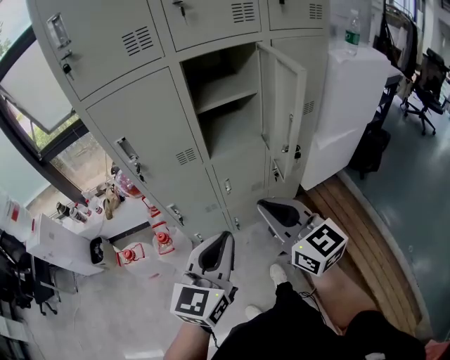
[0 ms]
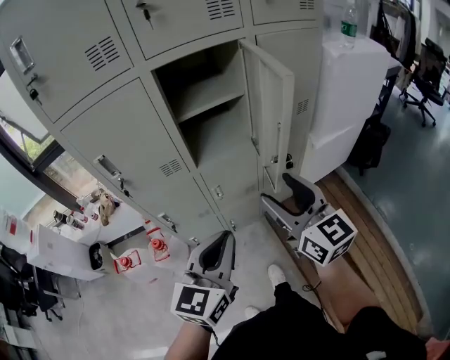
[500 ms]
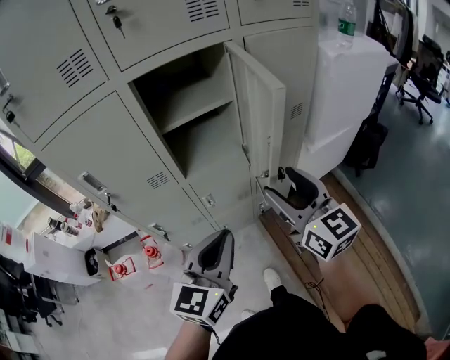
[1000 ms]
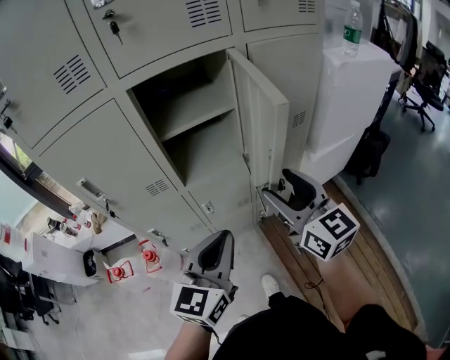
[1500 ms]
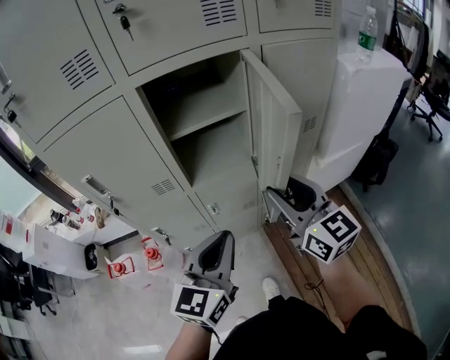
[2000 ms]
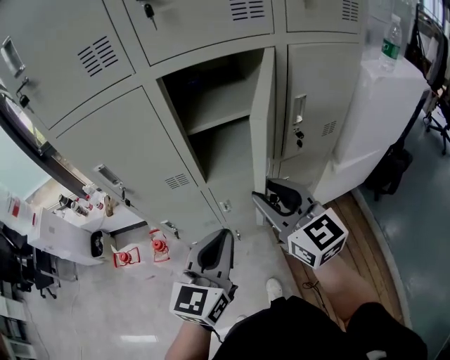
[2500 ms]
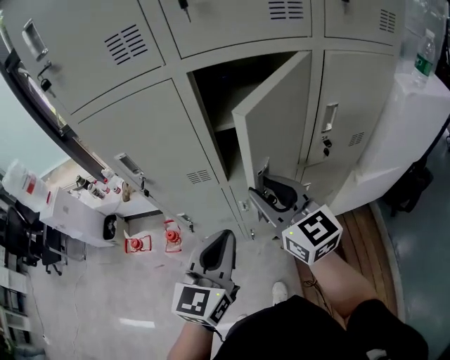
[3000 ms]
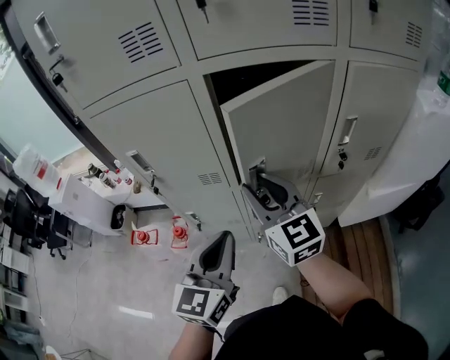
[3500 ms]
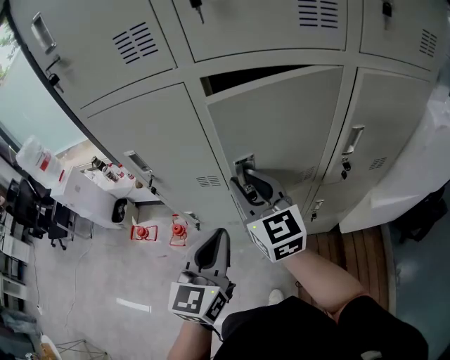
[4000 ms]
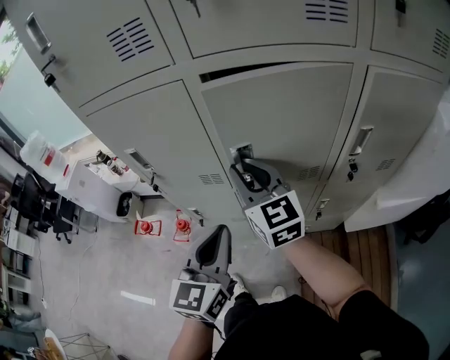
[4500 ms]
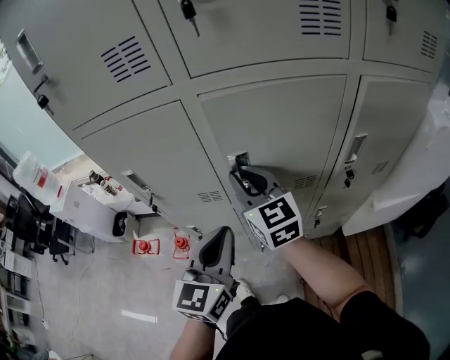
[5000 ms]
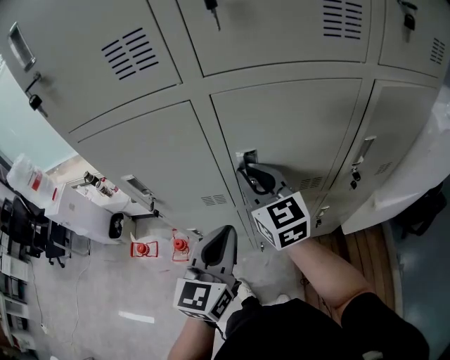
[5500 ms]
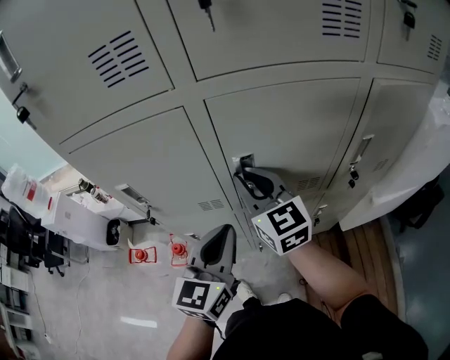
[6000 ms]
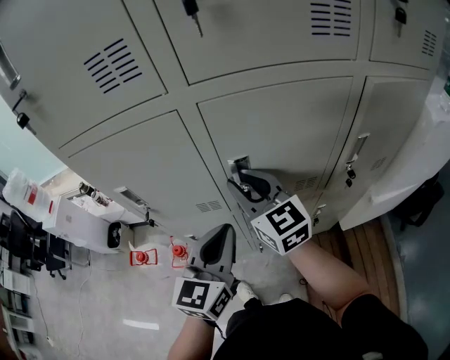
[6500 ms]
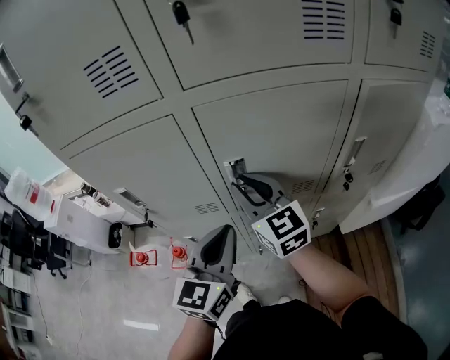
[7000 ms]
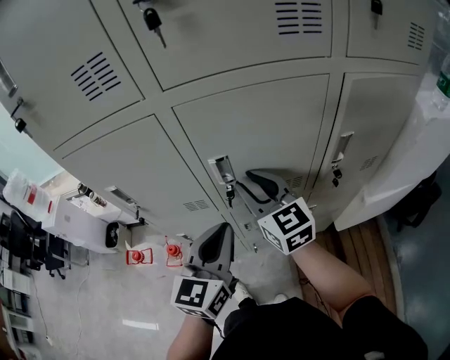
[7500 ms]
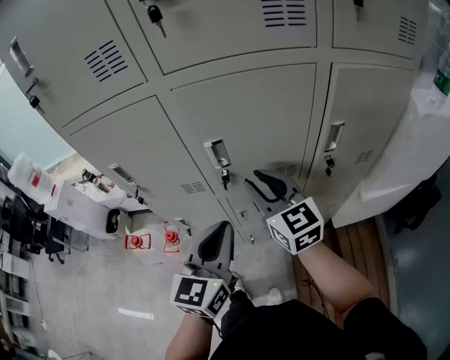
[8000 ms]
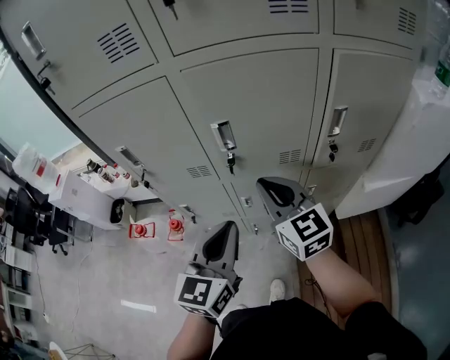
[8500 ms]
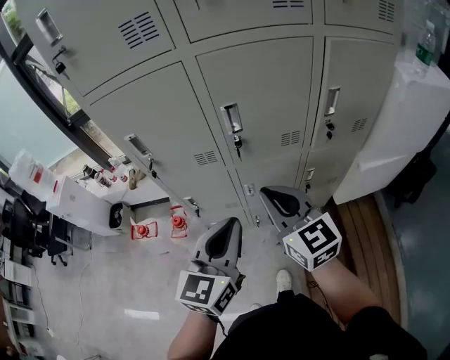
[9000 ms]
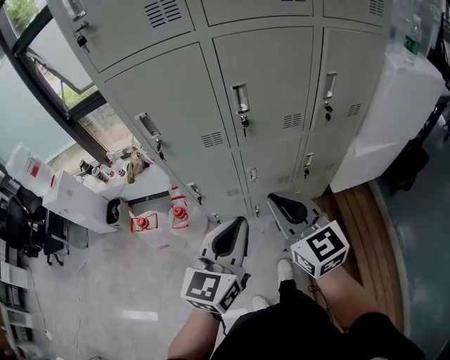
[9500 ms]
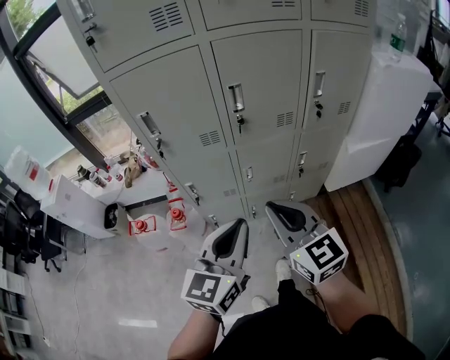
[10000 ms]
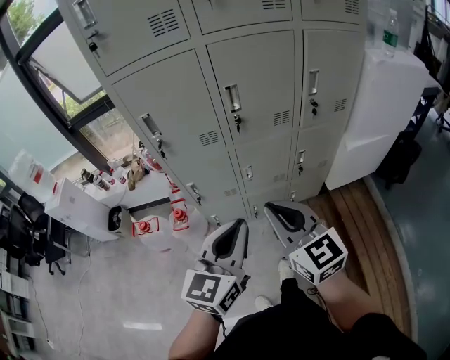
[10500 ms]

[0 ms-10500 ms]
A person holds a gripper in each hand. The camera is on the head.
0 ms to 2000 ms: Both grippers travel together forward and to the right, about 20 cm. The right gripper opens.
2000 ms to 4000 ms: The right gripper moves to the left and forward, approximately 20 cm; the left gripper goes about 10 cm to the left and forward, and turns by some 30 degrees.
4000 ms to 6500 ms: Both grippers move forward, approximately 10 cm.
6500 ms to 8500 ms: The left gripper heads backward, covering about 10 cm. The right gripper moves backward and to the right, some 15 cm.
8500 ms to 10500 ms: Both grippers move backward, about 20 cm.

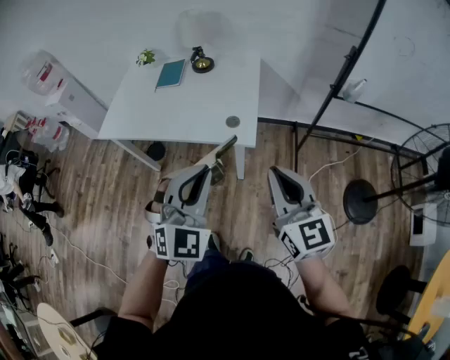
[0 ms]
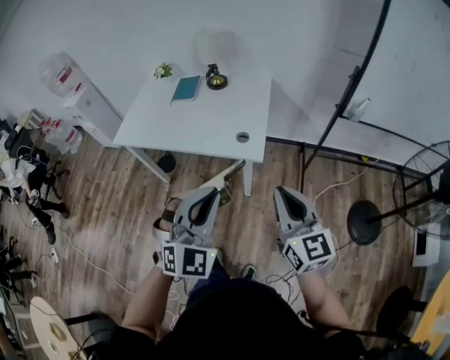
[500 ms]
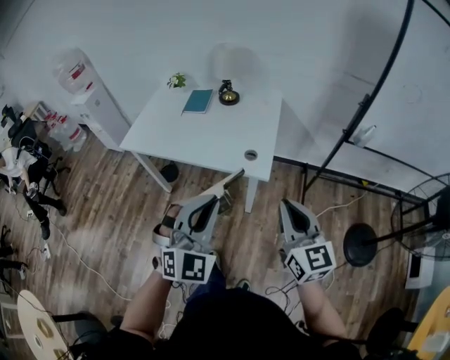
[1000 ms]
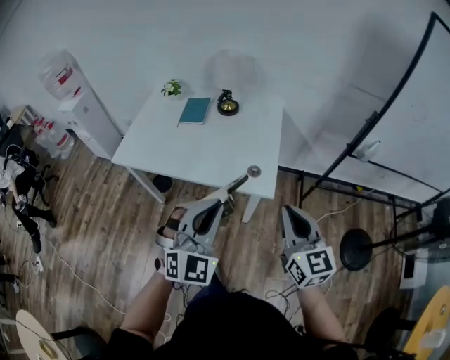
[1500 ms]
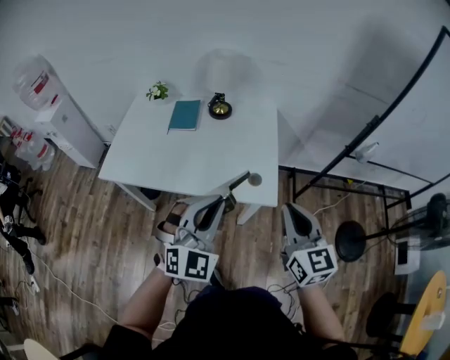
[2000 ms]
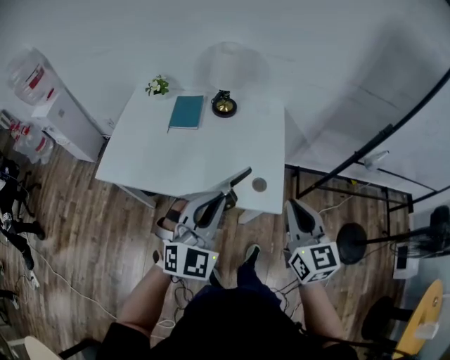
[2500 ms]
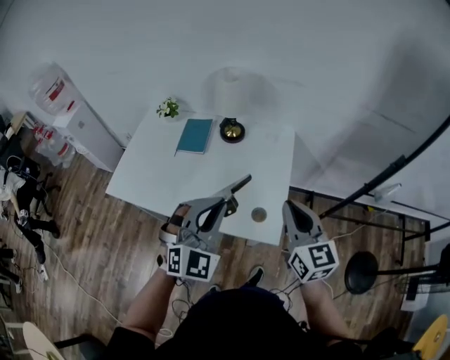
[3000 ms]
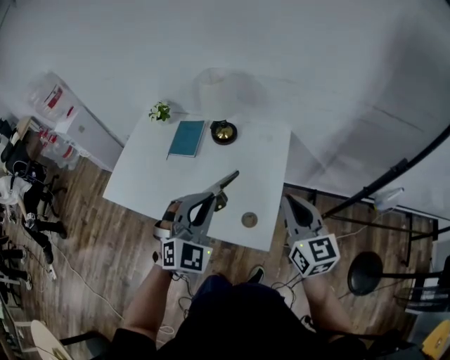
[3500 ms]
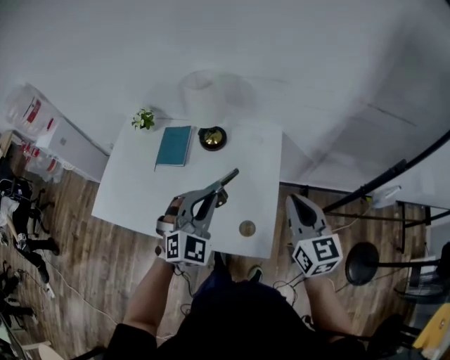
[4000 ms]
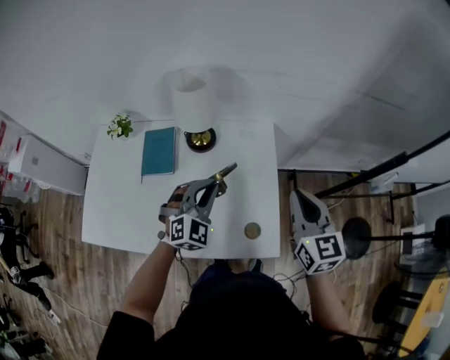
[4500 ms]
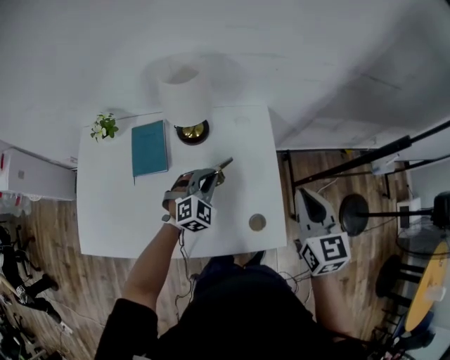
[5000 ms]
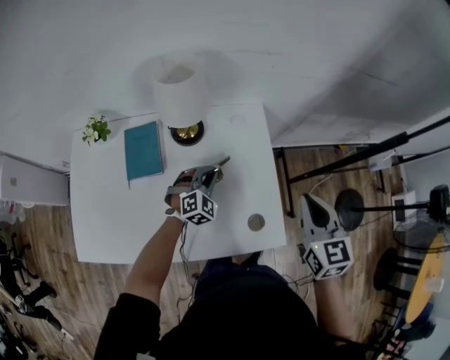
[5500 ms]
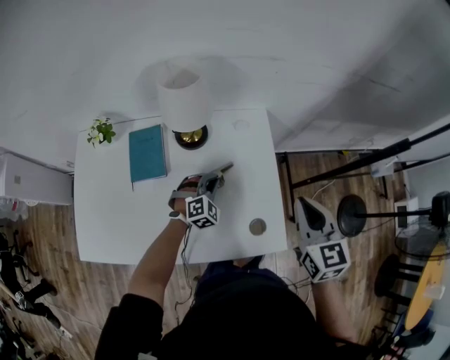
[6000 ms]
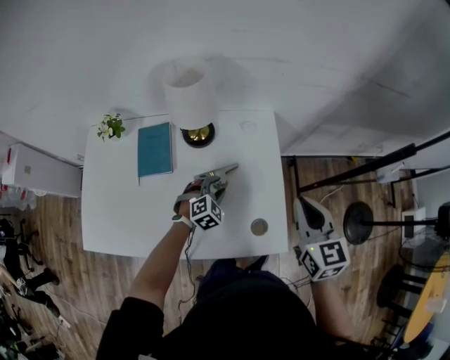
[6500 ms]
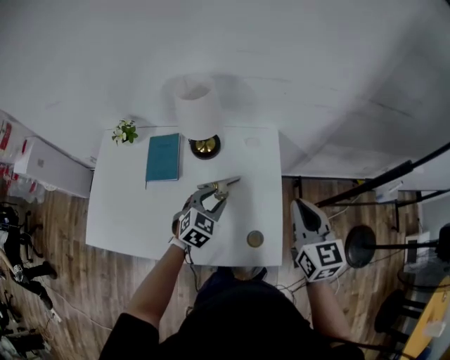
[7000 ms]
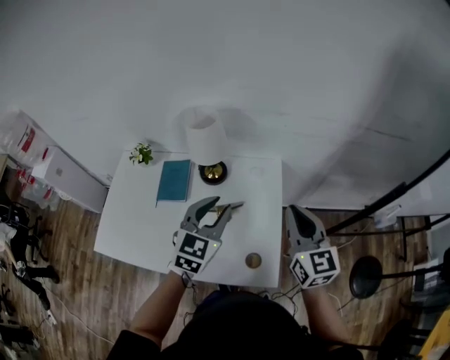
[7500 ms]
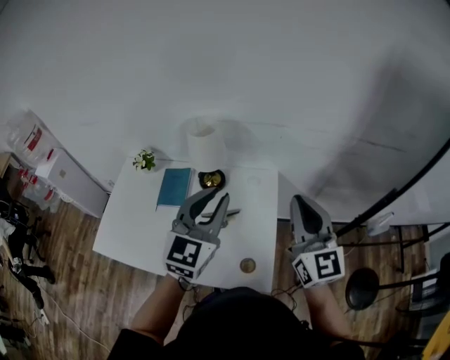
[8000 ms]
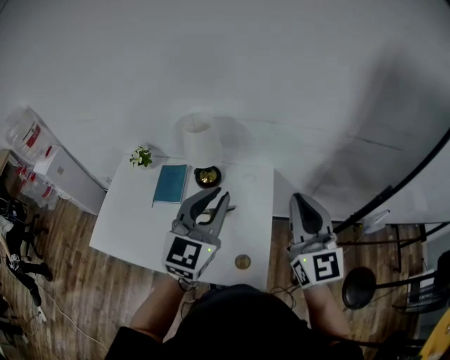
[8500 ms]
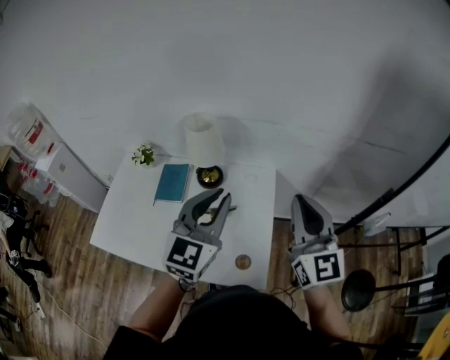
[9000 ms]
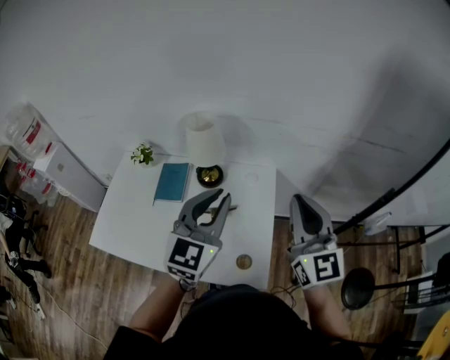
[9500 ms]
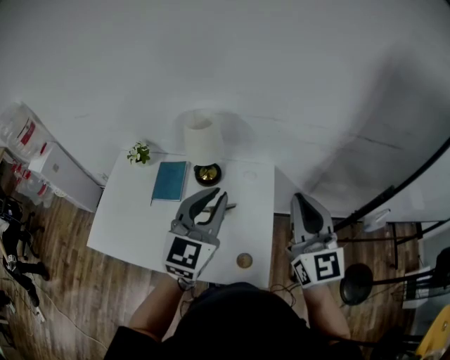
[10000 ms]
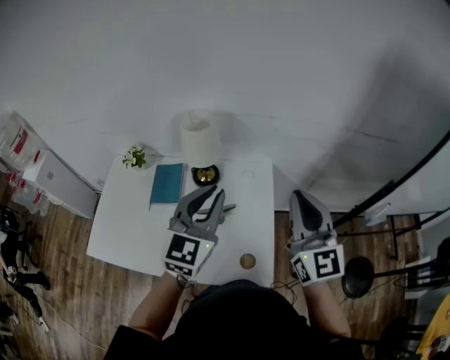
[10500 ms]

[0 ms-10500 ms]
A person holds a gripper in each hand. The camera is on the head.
0 ms to 2000 ms: The right gripper is displaced forward and to the left by some 20 cm. Meanwhile the left gripper heads to the left and forward, covering approximately 20 cm.
2000 ms to 4000 ms: The two grippers go approximately 30 cm forward.
4000 ms to 6500 ms: The right gripper travels downward and to the left by about 10 cm. Meanwhile the left gripper travels downward and forward by some 30 cm, changes its angle by roughly 30 degrees, and opens its fingers.
6500 ms to 8500 ms: The right gripper is displaced upward by roughly 20 cm, and tips its fingers upward by some 30 degrees. The left gripper heads upward, covering approximately 40 cm, points its fingers some 50 degrees further upward, and closes up.
8500 ms to 10500 ms: The left gripper moves some 5 cm.

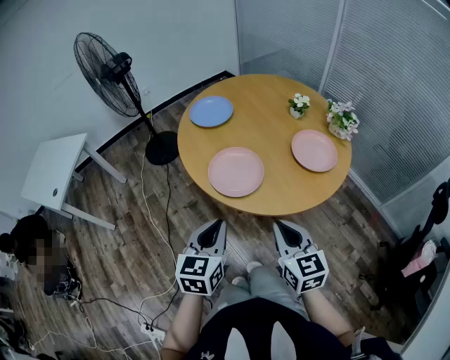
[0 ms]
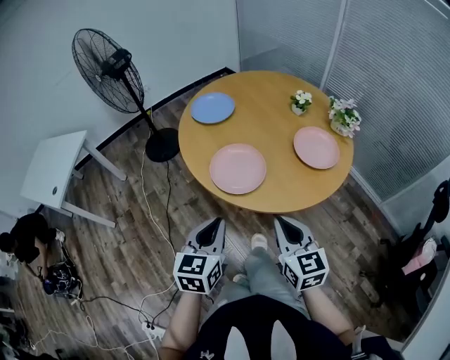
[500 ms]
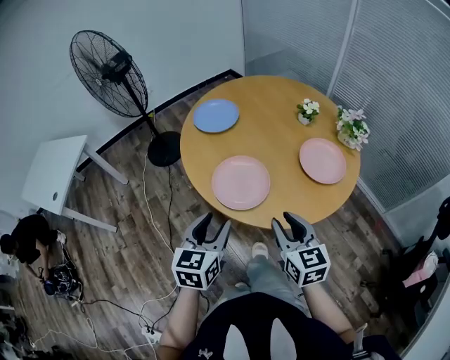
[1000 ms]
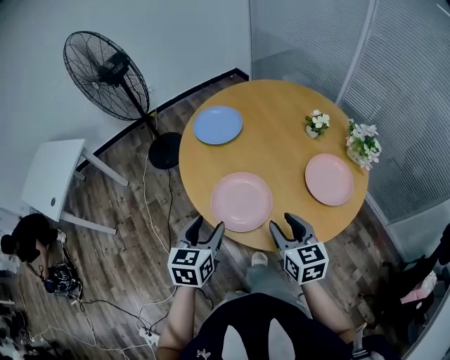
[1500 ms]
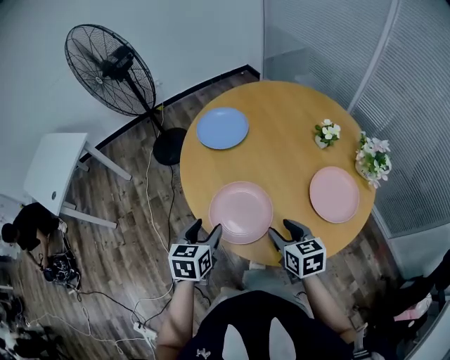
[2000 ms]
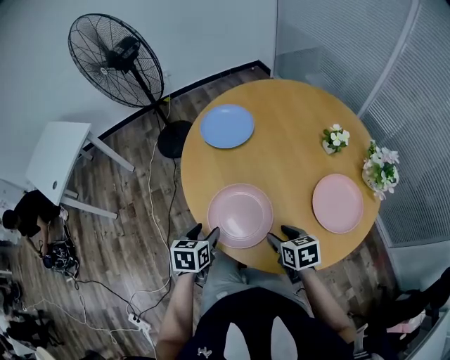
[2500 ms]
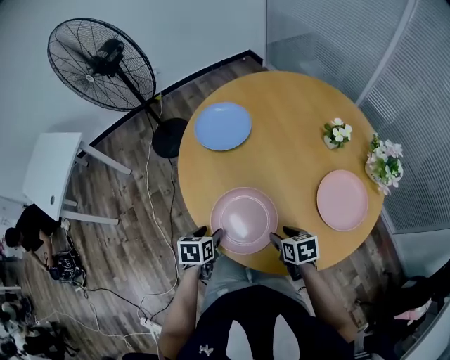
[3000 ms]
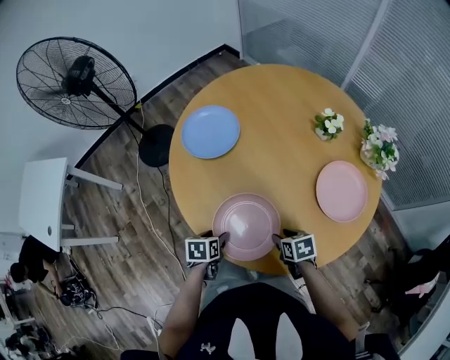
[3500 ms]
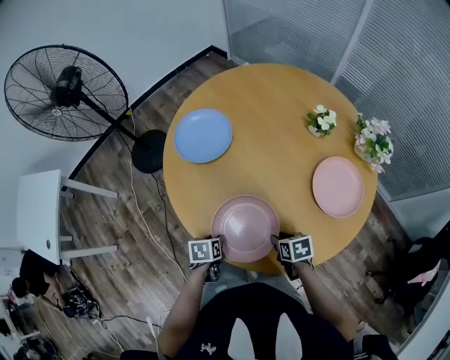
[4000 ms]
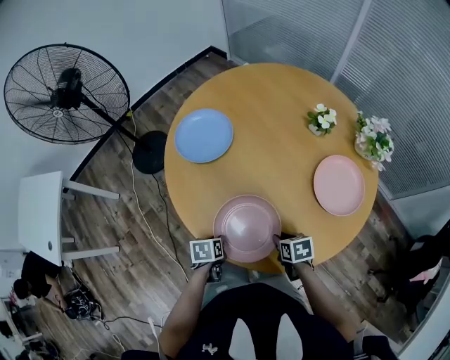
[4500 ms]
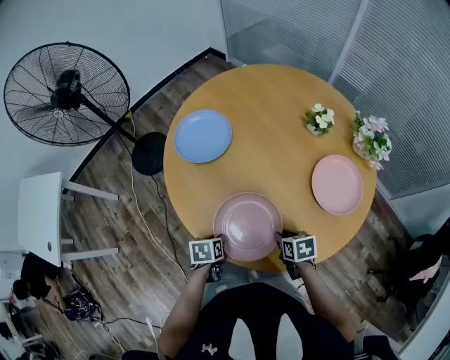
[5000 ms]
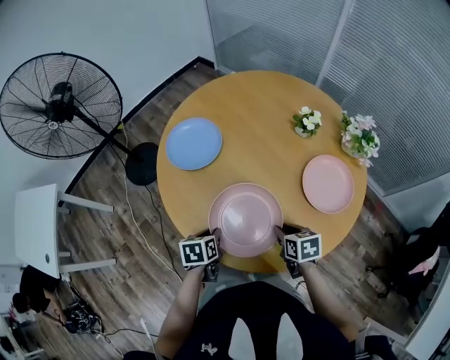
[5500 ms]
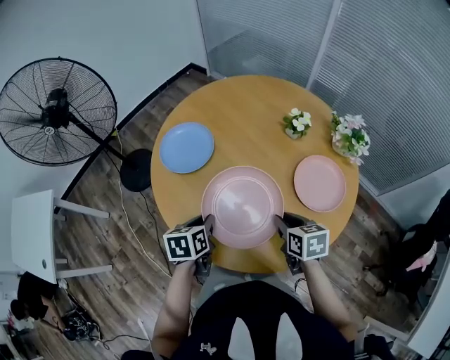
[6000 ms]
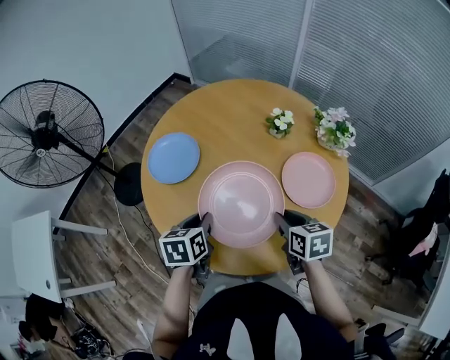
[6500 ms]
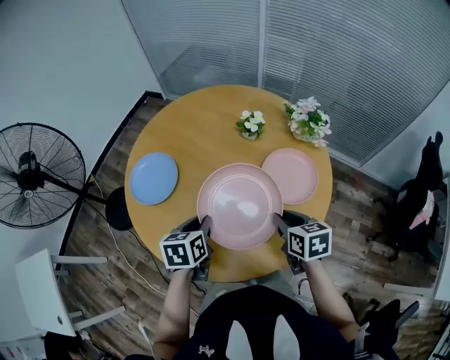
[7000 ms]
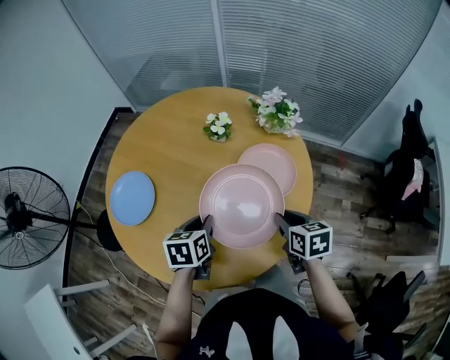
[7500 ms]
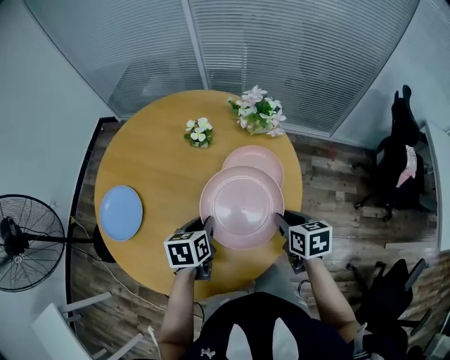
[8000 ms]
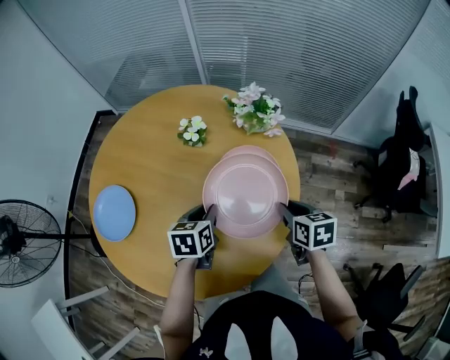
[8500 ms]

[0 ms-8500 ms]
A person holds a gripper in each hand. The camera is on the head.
0 ms to 2000 ms: Both grippers travel together forward and downward, some 25 cm. The left gripper opens; the right gripper swivels approximately 20 degrees, and opens its fingers.
2000 ms to 4000 ms: Both grippers move downward, approximately 20 cm. The left gripper turns by some 30 degrees, and closes up; the right gripper changes its angle by approximately 30 degrees, and closes its fingers.
4000 ms to 6500 ms: The right gripper is displaced upward by roughly 20 cm, and turns by roughly 30 degrees, while the left gripper moves upward and forward, approximately 20 cm, and changes its angle by some 30 degrees.
6500 ms to 8500 ms: The left gripper ends up roughly 25 cm from where it was, and changes its angle by approximately 30 degrees; the right gripper changes place by approximately 20 cm, and rotates about 30 degrees.
